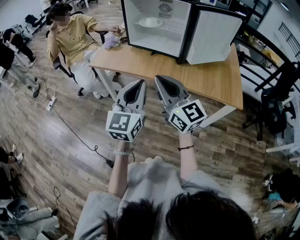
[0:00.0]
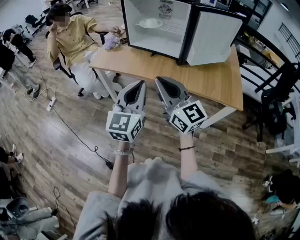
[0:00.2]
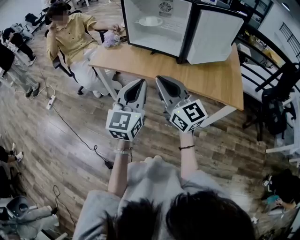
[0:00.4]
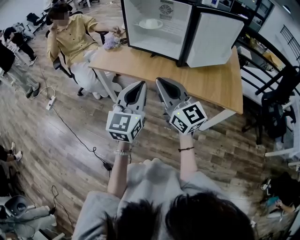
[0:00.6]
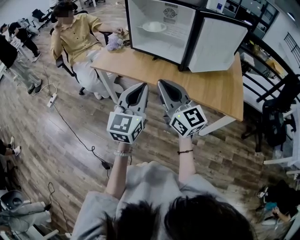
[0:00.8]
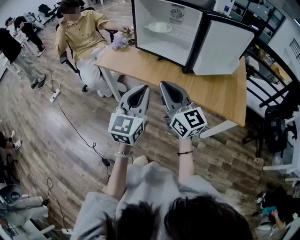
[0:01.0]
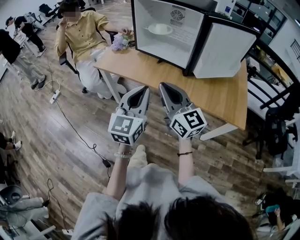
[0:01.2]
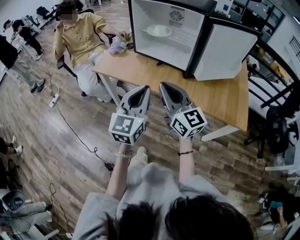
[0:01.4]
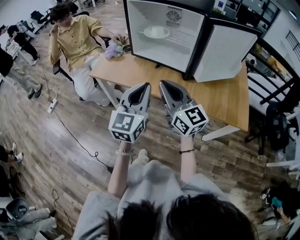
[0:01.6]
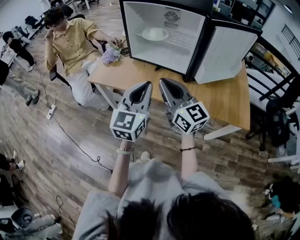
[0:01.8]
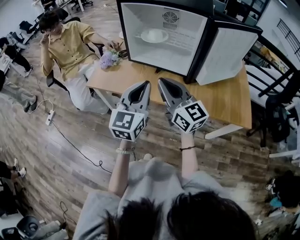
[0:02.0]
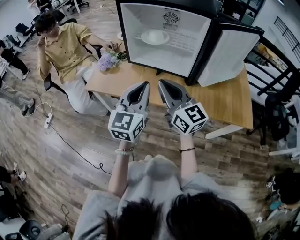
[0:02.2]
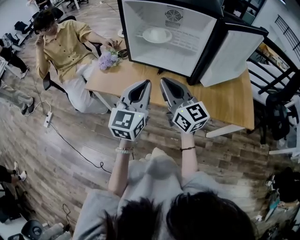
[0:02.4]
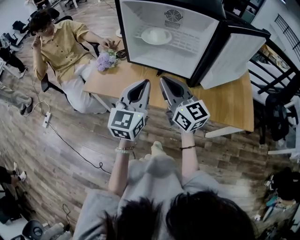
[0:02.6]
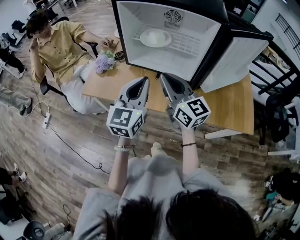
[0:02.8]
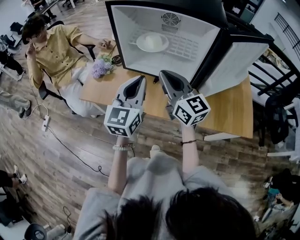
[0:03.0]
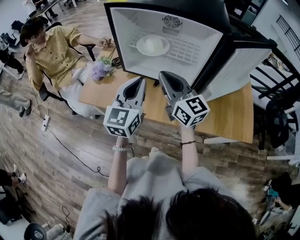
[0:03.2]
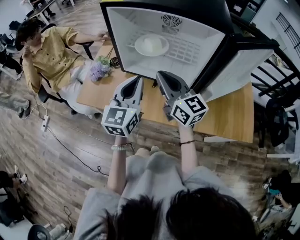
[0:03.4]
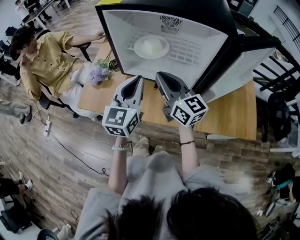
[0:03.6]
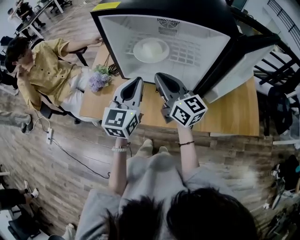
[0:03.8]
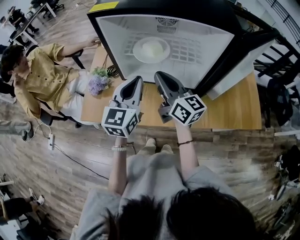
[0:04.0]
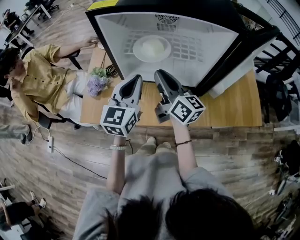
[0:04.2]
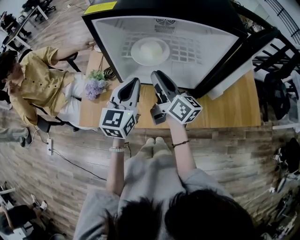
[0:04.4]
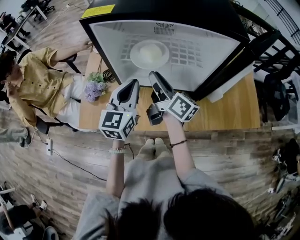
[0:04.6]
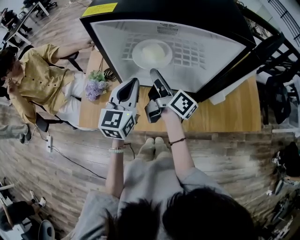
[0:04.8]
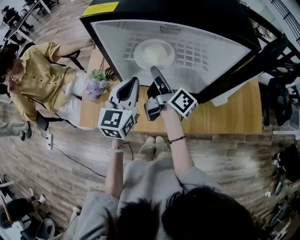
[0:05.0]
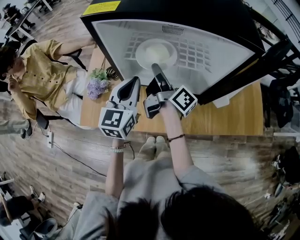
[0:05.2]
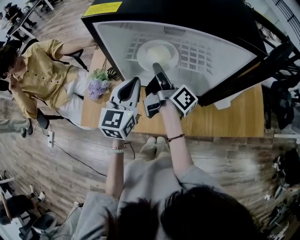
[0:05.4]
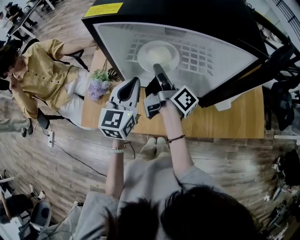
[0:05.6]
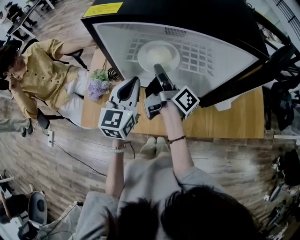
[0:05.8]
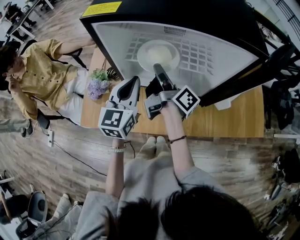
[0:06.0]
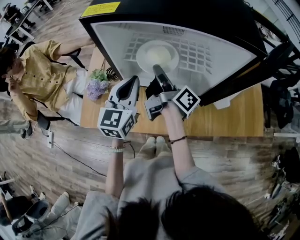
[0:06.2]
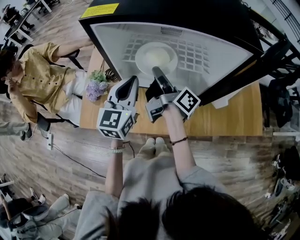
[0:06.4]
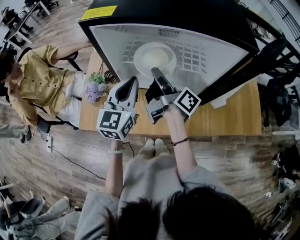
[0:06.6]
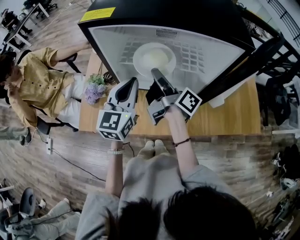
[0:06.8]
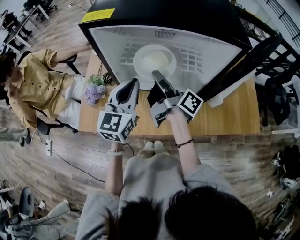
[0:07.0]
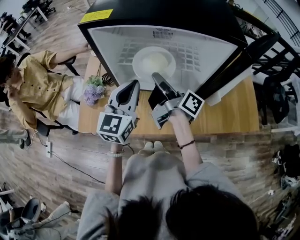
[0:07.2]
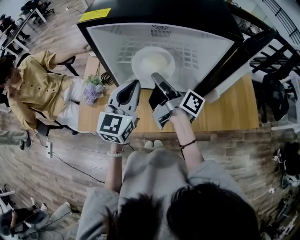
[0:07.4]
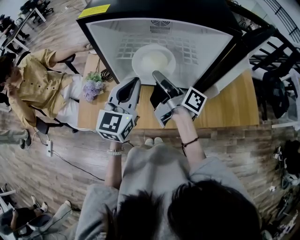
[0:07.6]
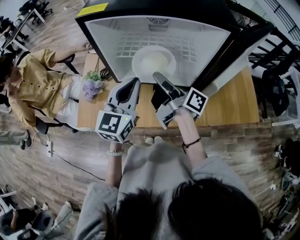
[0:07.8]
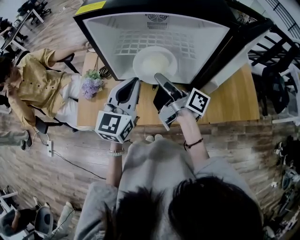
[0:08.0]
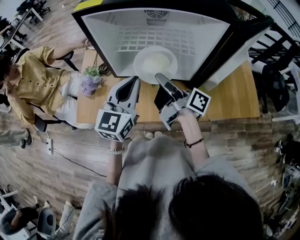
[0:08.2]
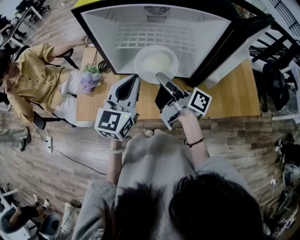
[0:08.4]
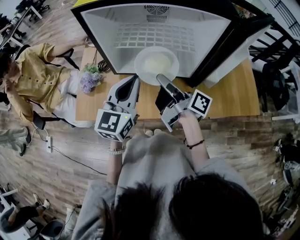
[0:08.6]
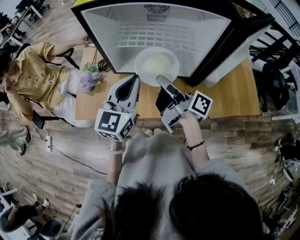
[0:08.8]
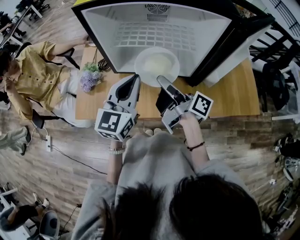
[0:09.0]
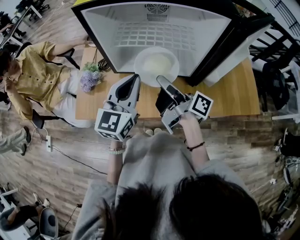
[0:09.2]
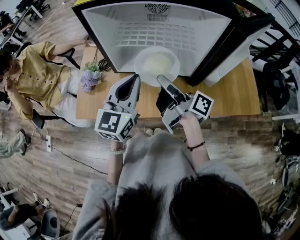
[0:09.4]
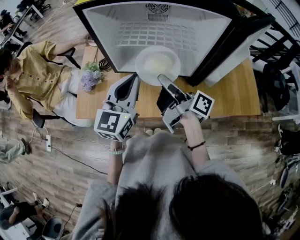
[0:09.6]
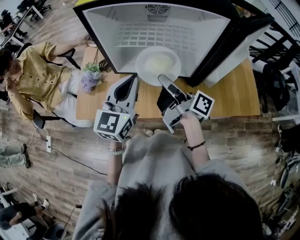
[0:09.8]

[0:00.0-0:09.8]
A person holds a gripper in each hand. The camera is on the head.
0:00.0 to 0:01.4: The two grippers go roughly 5 cm forward.
0:01.4 to 0:02.8: Both grippers travel together forward, approximately 20 cm.
0:02.8 to 0:04.2: Both grippers travel together forward, about 15 cm. The right gripper changes its angle by approximately 30 degrees.
0:04.2 to 0:05.6: The right gripper heads forward, covering some 10 cm, and rotates around the line of its fingers by about 50 degrees, clockwise from behind, while the left gripper changes place by about 5 cm.
0:05.6 to 0:07.0: The grippers stay close to where they were, moving slightly.
0:07.0 to 0:08.4: Both grippers move backward, approximately 5 cm.
0:08.4 to 0:09.8: The grippers move only a little.

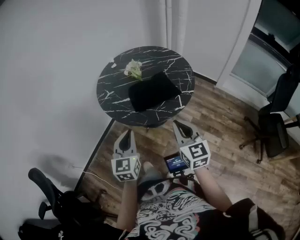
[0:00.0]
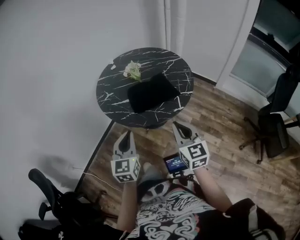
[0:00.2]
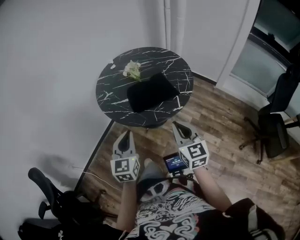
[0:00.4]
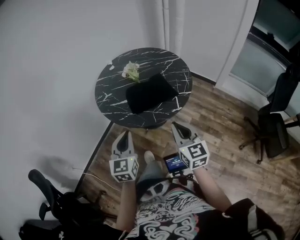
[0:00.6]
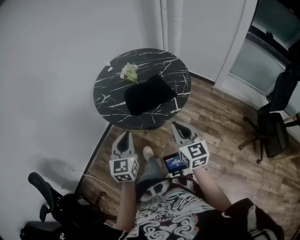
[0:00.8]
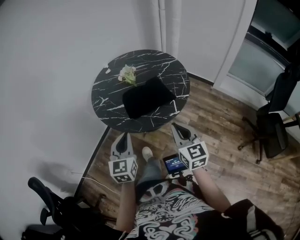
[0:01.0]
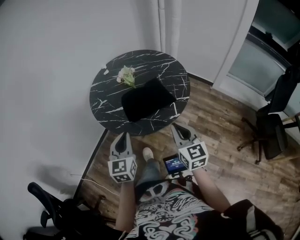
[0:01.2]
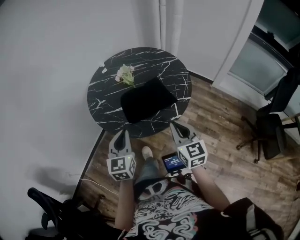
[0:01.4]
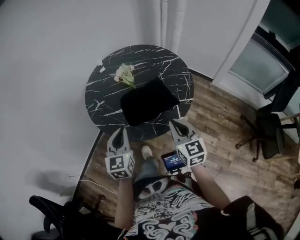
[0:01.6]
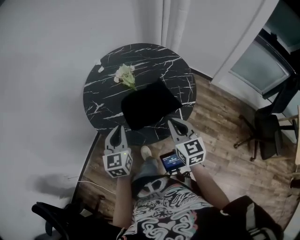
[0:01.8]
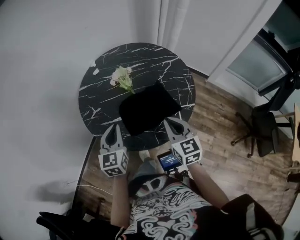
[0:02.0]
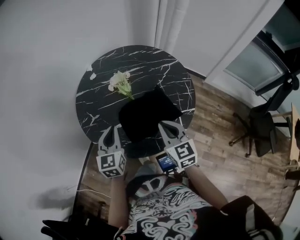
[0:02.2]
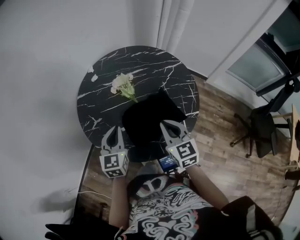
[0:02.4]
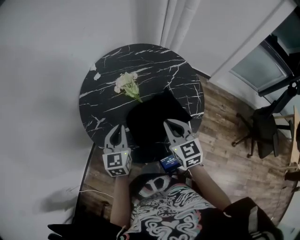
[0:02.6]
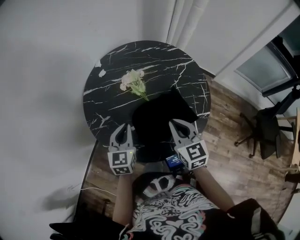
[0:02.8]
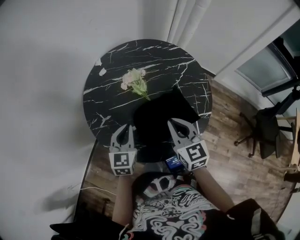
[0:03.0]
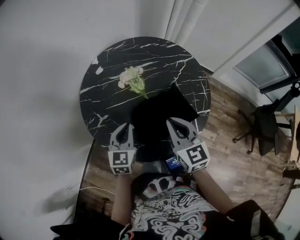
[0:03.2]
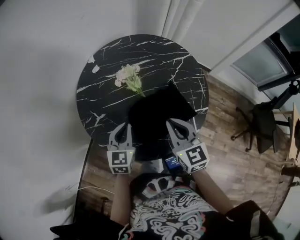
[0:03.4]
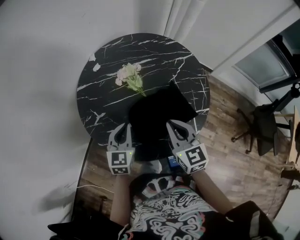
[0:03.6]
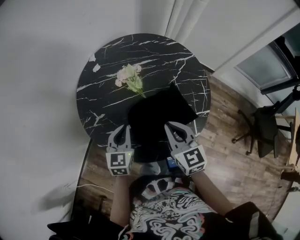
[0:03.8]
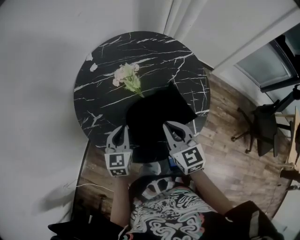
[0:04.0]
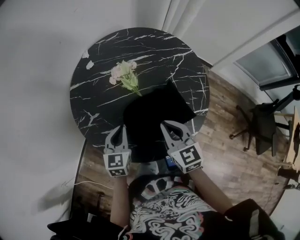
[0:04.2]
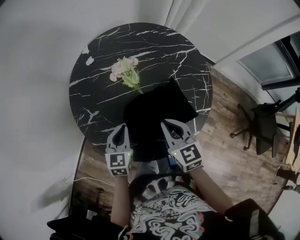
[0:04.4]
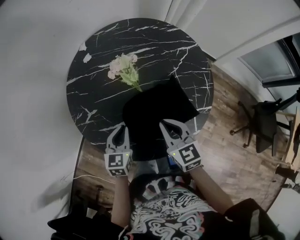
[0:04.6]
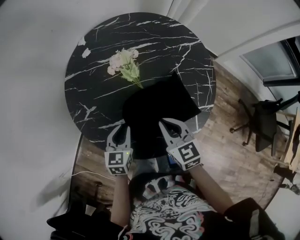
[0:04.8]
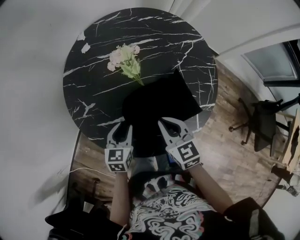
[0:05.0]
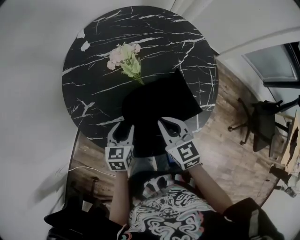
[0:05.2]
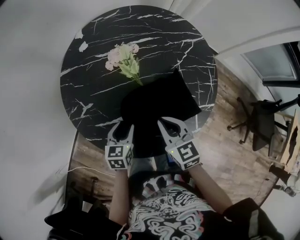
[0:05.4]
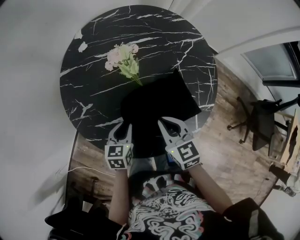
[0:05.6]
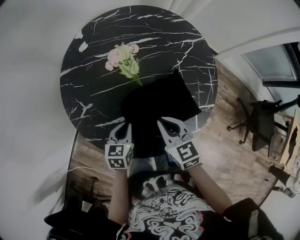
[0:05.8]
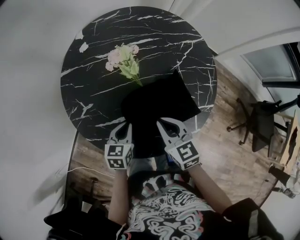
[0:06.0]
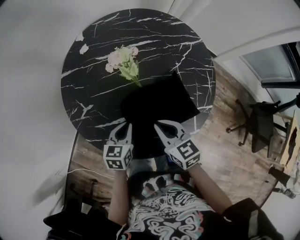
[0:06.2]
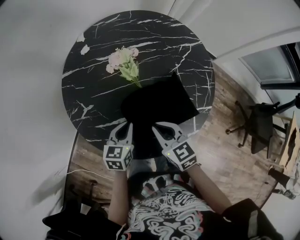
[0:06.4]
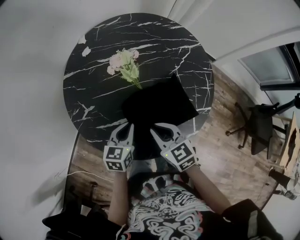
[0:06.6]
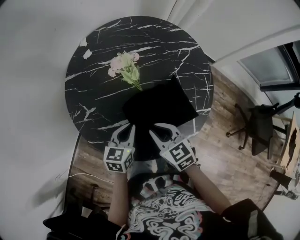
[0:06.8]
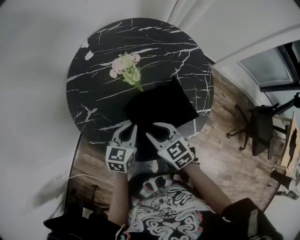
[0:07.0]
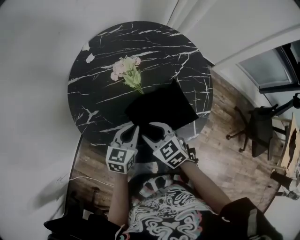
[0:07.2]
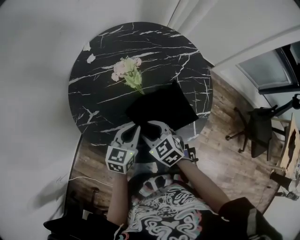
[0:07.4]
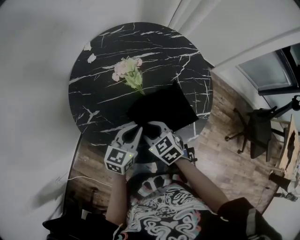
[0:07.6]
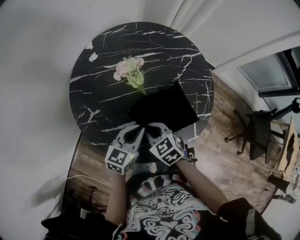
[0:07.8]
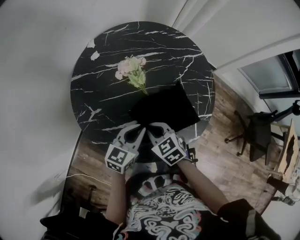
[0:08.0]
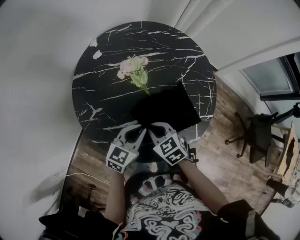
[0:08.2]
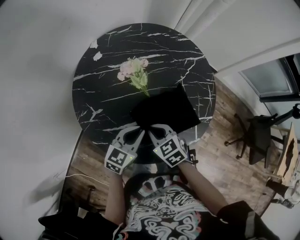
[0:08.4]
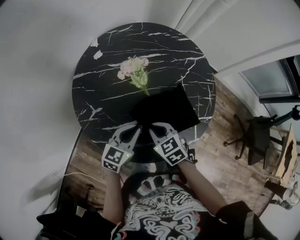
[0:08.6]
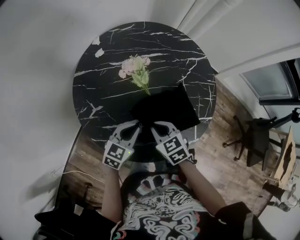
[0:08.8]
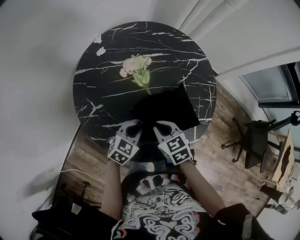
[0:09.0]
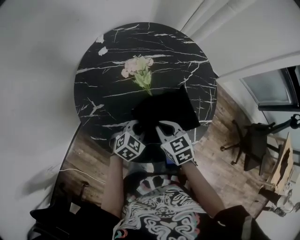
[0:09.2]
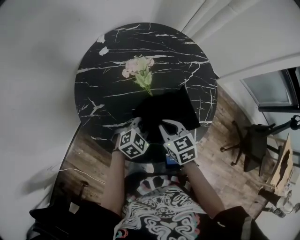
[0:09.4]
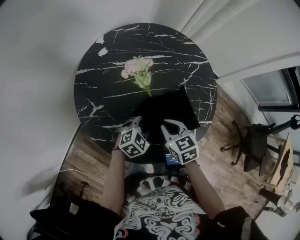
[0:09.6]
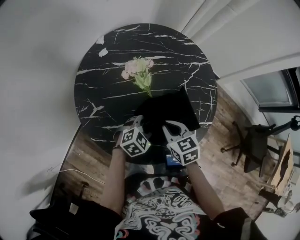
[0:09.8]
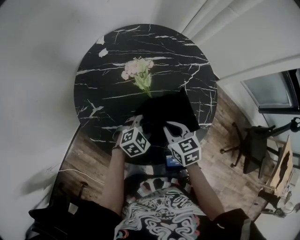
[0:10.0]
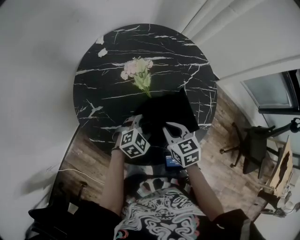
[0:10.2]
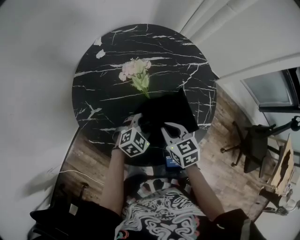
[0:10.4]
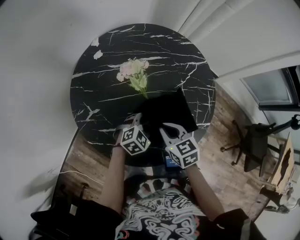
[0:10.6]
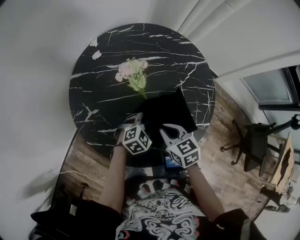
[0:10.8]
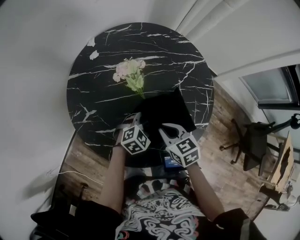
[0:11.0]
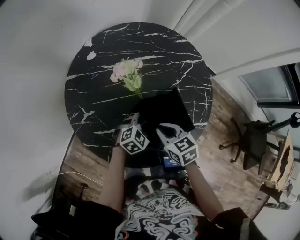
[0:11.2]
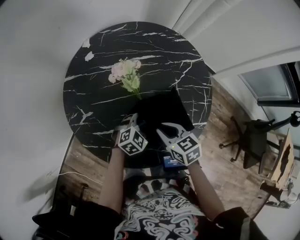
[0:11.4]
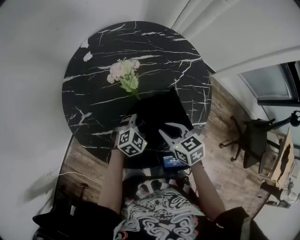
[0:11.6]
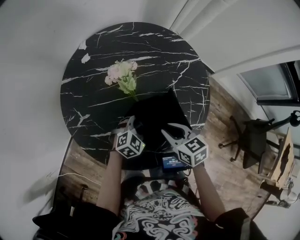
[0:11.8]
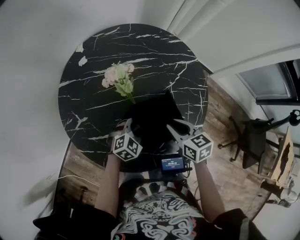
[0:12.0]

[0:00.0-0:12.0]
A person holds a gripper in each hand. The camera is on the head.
0:00.0 to 0:01.6: The grippers both shift forward by roughly 15 cm.
0:01.6 to 0:03.0: The right gripper is displaced forward and to the left by about 20 cm, while the left gripper goes roughly 20 cm forward.
0:03.0 to 0:04.4: Both grippers move downward, roughly 5 cm.
0:04.4 to 0:06.0: The grippers both shift downward by roughly 5 cm. The left gripper opens, then closes once more.
0:06.0 to 0:07.6: The right gripper travels to the left by approximately 5 cm, swivels some 20 degrees, and opens its fingers. The left gripper moves upward, roughly 10 cm, and turns by about 20 degrees.
0:07.6 to 0:09.0: The left gripper shifts approximately 5 cm downward, and changes its angle by roughly 20 degrees, while the right gripper closes up.
0:09.0 to 0:10.4: The left gripper heads to the right, covering roughly 5 cm, and opens up.
0:10.4 to 0:12.0: The right gripper moves to the right, approximately 10 cm.

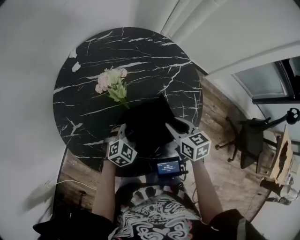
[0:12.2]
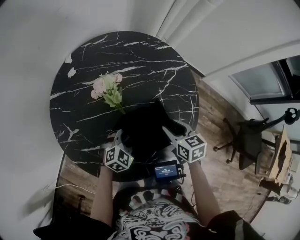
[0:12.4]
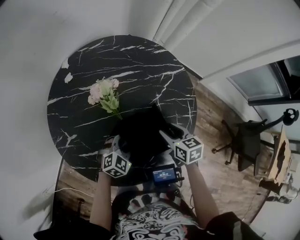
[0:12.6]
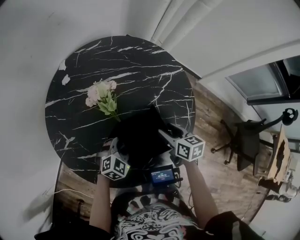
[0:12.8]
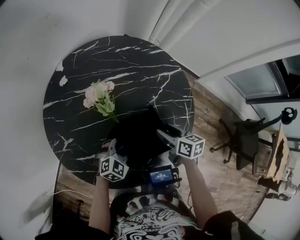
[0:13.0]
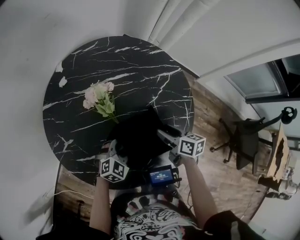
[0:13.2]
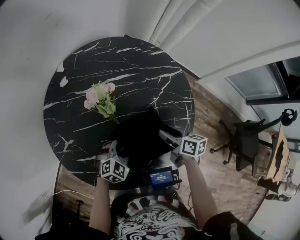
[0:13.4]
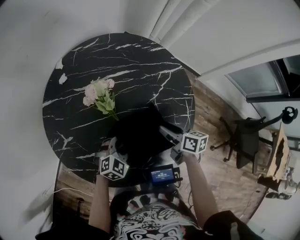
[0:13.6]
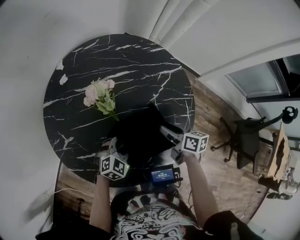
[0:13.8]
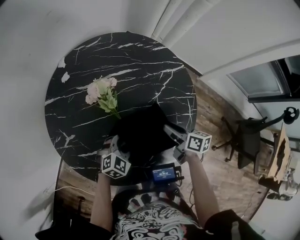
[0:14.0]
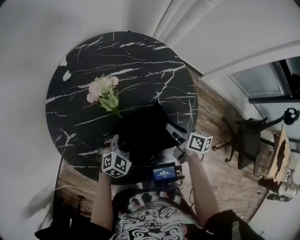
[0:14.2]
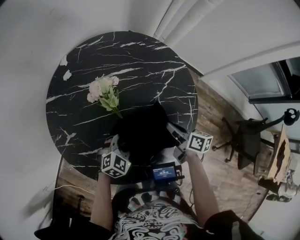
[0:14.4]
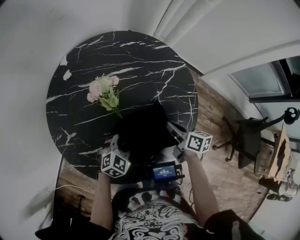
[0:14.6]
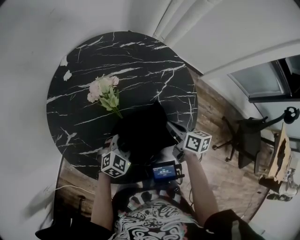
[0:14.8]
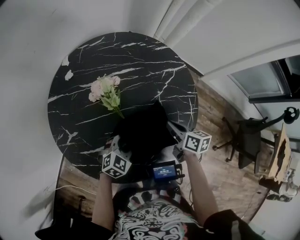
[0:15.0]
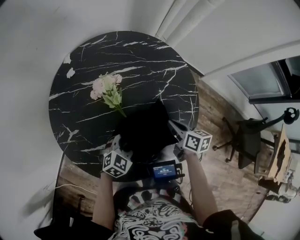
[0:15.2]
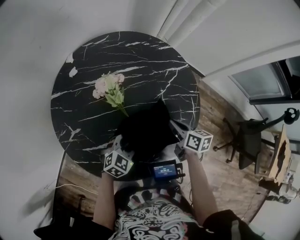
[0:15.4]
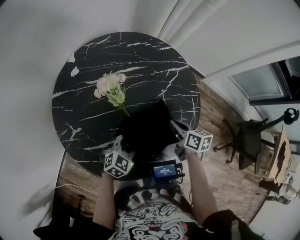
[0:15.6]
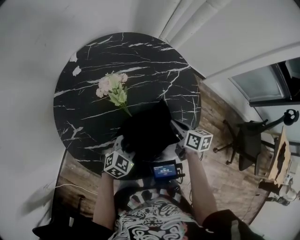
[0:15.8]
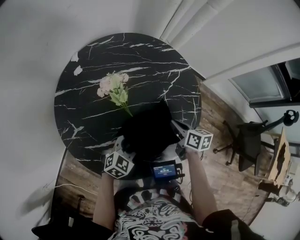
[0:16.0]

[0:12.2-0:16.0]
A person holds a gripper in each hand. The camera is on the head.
0:12.2 to 0:13.4: The right gripper shifts by approximately 5 cm, swivels roughly 30 degrees, and opens its fingers.
0:13.4 to 0:14.8: The right gripper closes up.
0:14.8 to 0:16.0: There are only small adjustments of the grippers.
